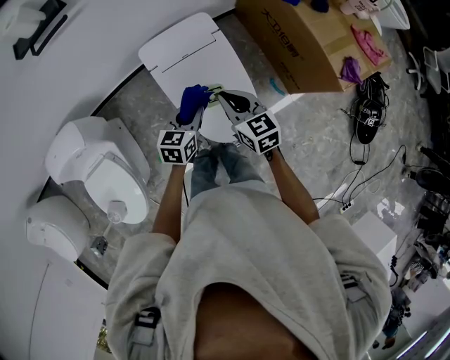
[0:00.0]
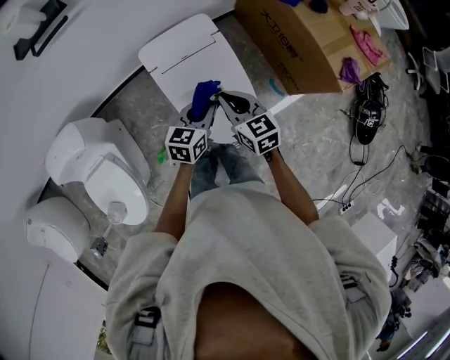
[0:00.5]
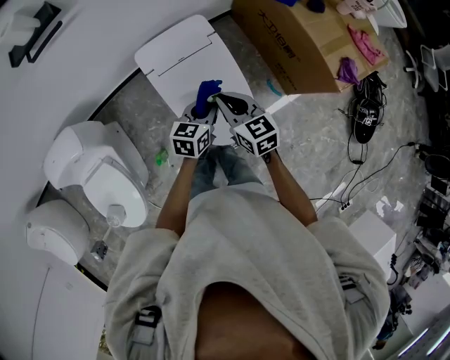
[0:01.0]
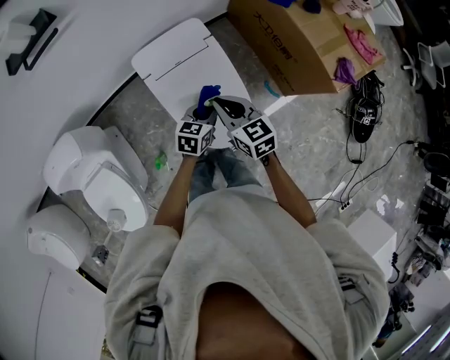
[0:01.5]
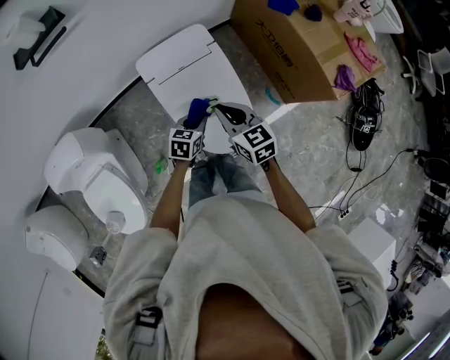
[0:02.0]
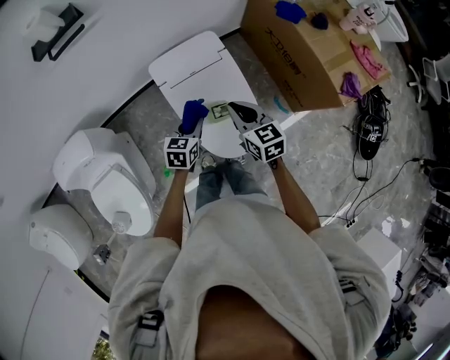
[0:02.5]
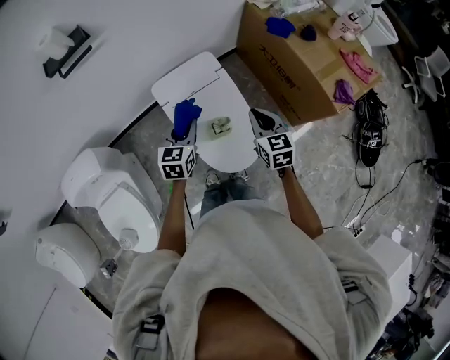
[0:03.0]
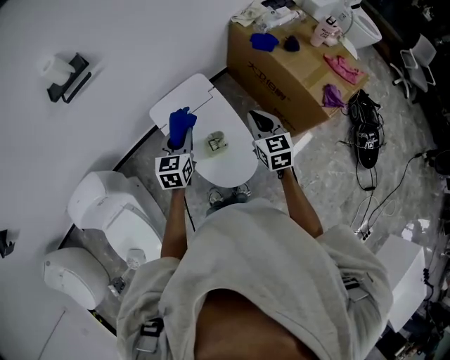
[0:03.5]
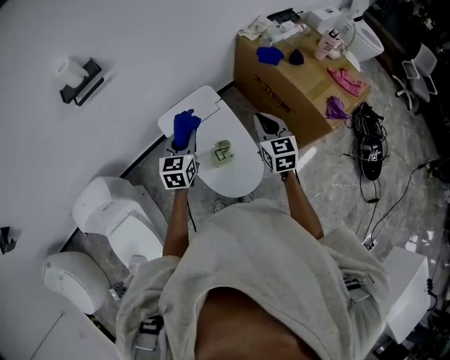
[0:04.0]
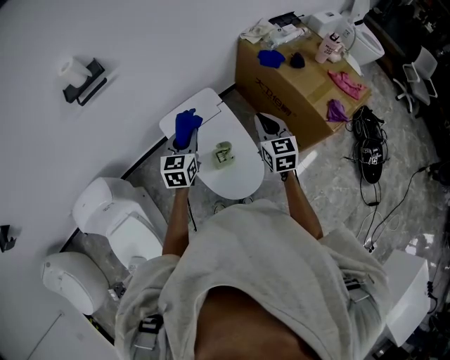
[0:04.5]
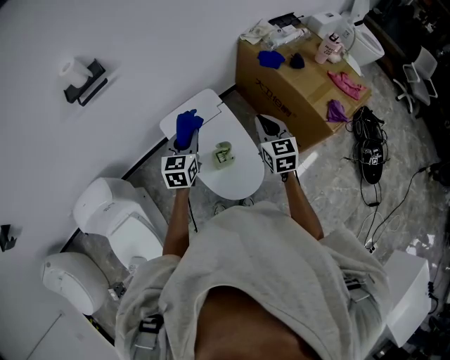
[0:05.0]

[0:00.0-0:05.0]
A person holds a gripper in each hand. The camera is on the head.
0:00.0 to 0:02.5: The left gripper reaches some 10 cm downward, then returns.
0:02.5 to 0:05.0: The left gripper is displaced upward and forward by roughly 20 cm, and swivels about 20 degrees; the right gripper goes roughly 15 cm to the right and upward, and changes its angle by about 30 degrees.

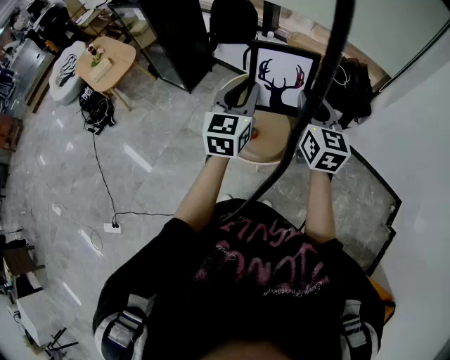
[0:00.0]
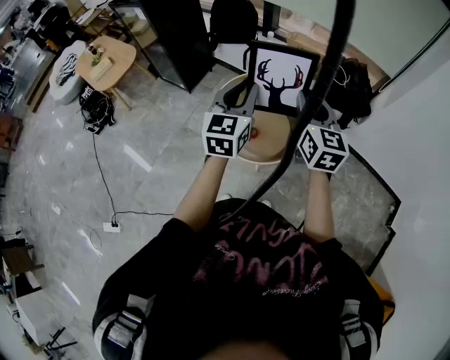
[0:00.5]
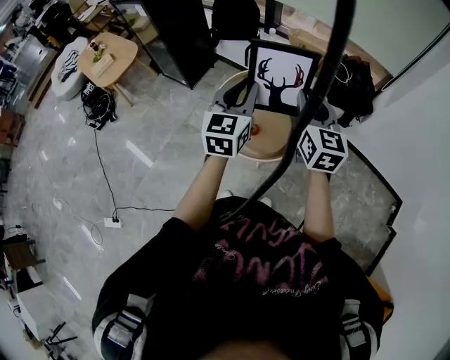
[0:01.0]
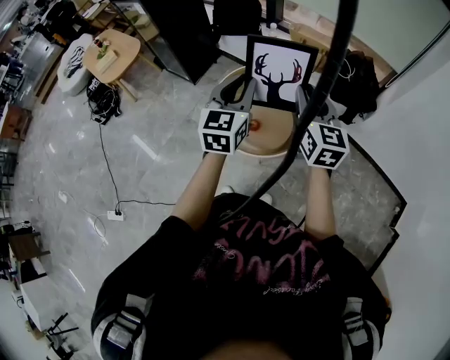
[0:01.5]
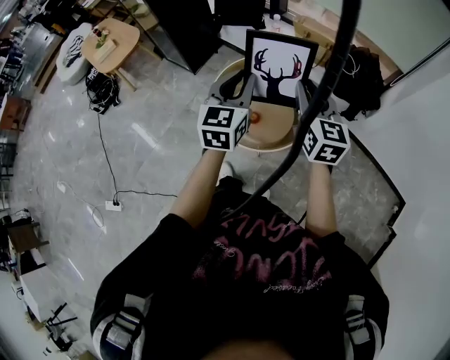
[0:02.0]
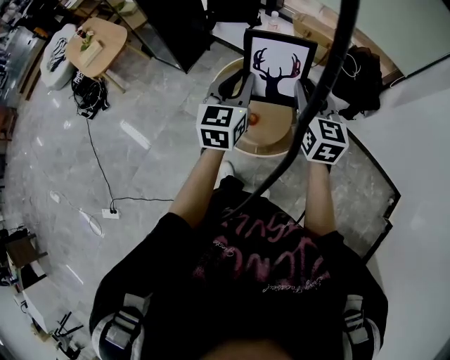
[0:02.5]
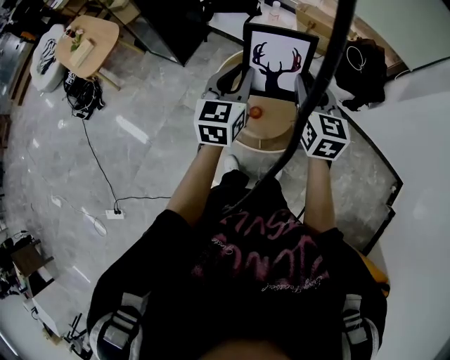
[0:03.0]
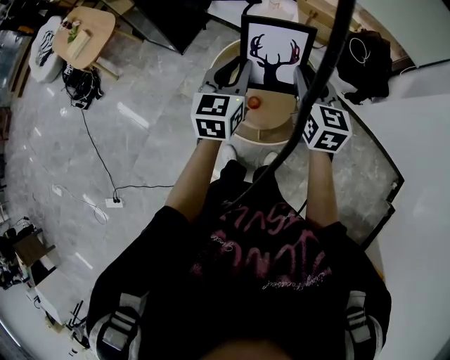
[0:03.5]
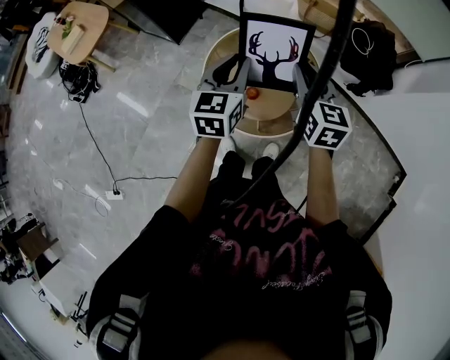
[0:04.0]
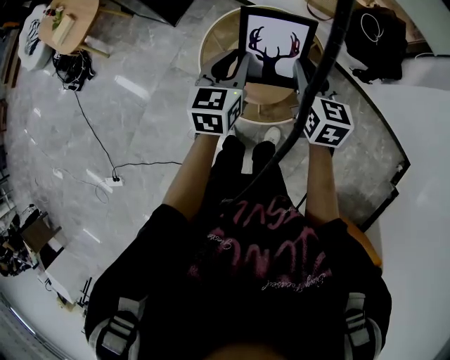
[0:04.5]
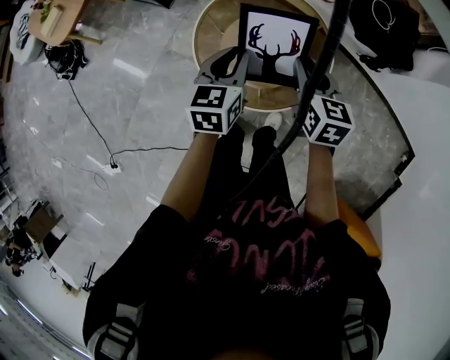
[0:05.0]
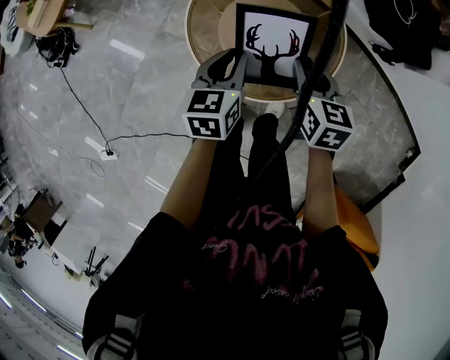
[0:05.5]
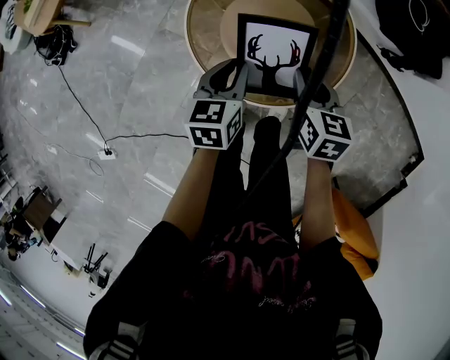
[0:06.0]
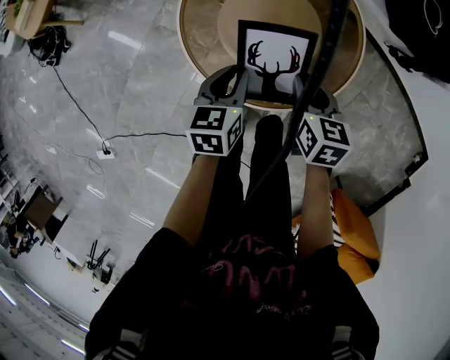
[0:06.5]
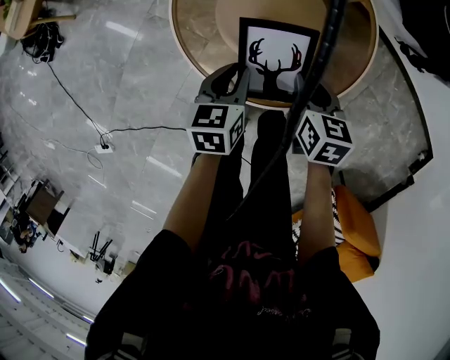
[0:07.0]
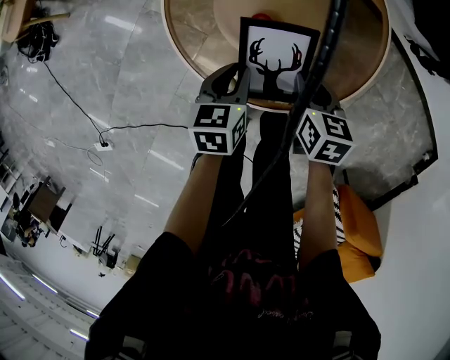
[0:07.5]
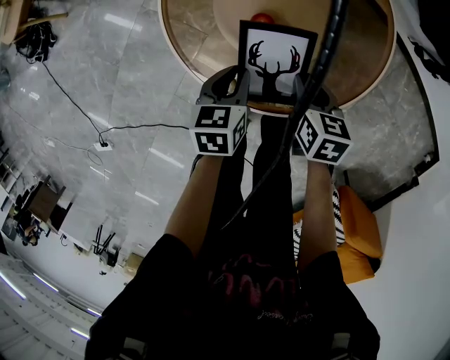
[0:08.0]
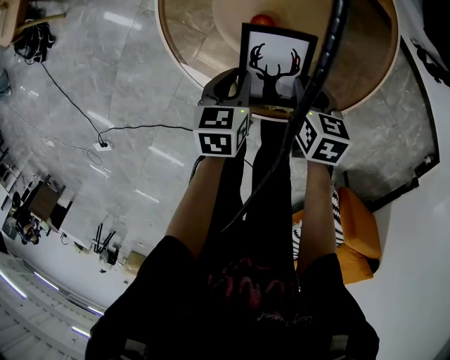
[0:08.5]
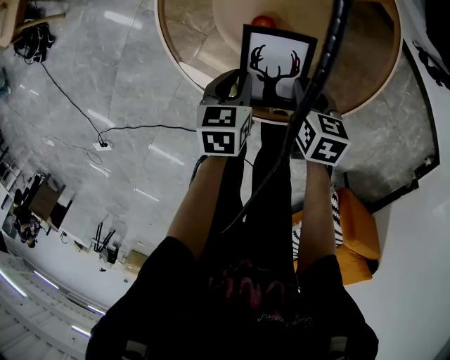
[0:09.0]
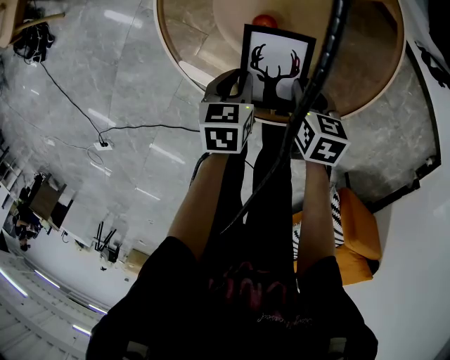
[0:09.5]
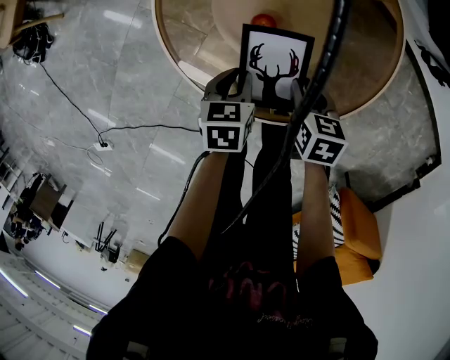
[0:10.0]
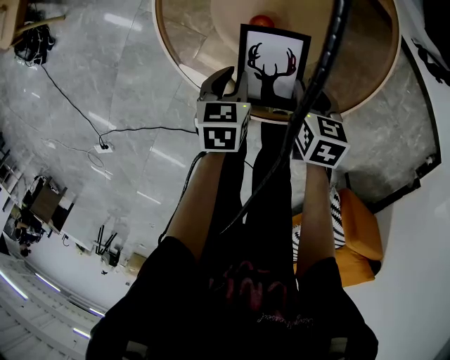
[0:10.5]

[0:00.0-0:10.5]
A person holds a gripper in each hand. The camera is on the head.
0:00.0 to 0:02.0: The grippers stay close to where they were, moving slightly.
0:02.0 to 0:04.0: The grippers both shift forward and downward by roughly 15 cm.
0:04.0 to 0:06.5: The grippers both shift downward by some 30 cm. The right gripper changes its angle by some 30 degrees. The left gripper swivels some 30 degrees.
0:06.5 to 0:08.5: Both grippers travel together downward, some 15 cm.
0:08.5 to 0:10.5: The grippers stay close to where they were, moving slightly.

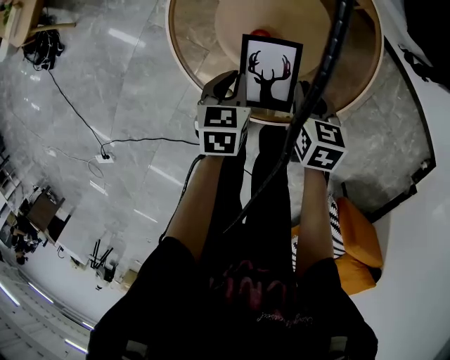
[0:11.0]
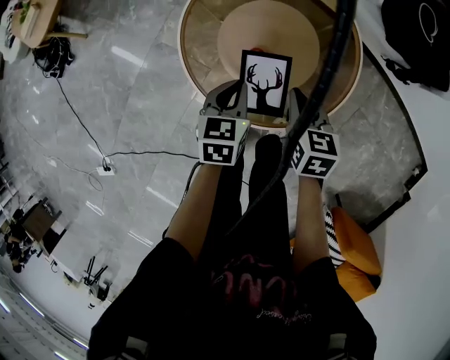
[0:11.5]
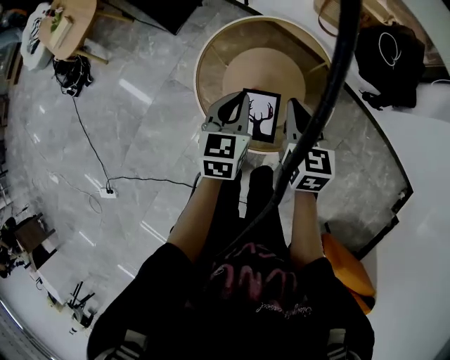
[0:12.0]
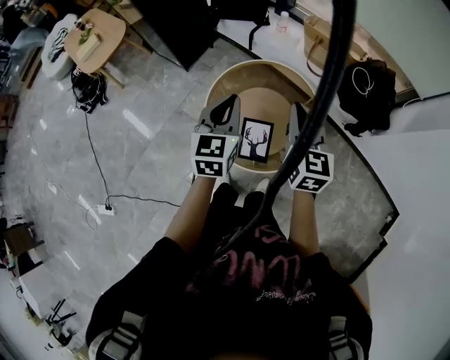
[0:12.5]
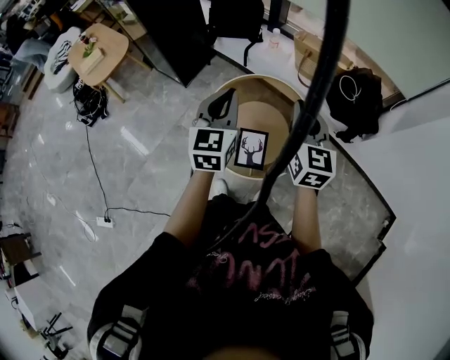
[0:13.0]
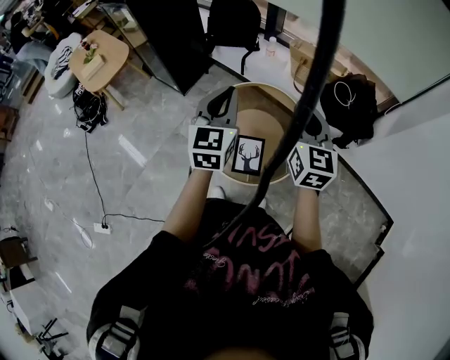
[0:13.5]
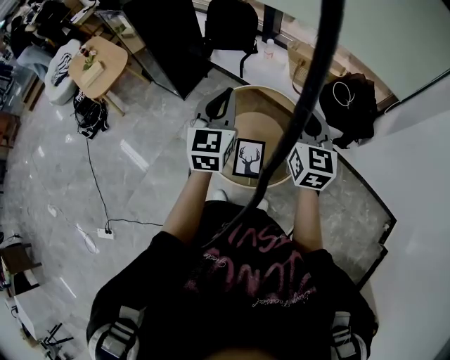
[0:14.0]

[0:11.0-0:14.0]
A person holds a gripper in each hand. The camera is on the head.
0:11.0 to 0:12.5: The grippers both shift upward by approximately 40 cm. The left gripper points its fingers about 40 degrees further upward; the right gripper points its fingers approximately 40 degrees further upward.
0:12.5 to 0:14.0: Both grippers travel together upward, roughly 10 cm.

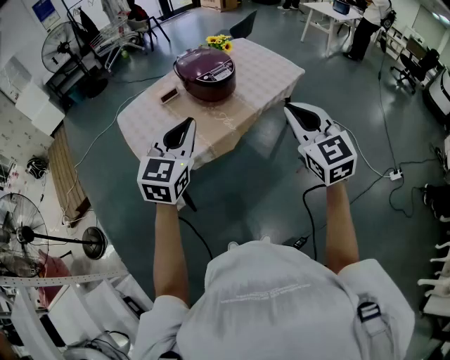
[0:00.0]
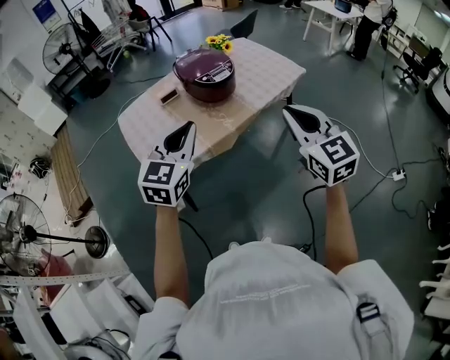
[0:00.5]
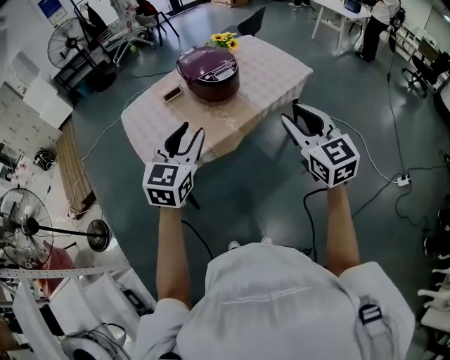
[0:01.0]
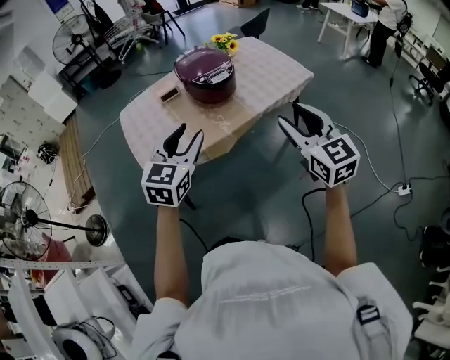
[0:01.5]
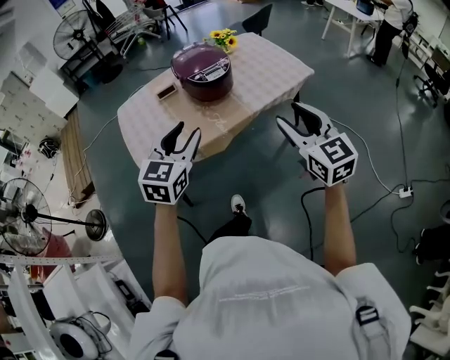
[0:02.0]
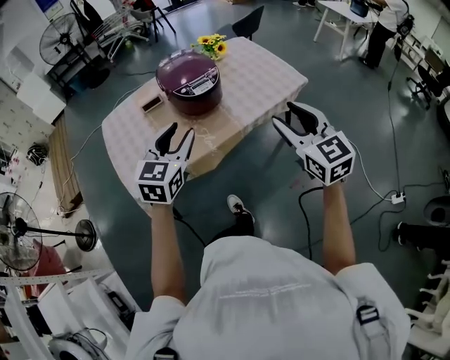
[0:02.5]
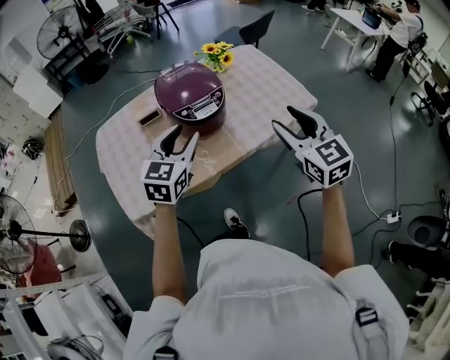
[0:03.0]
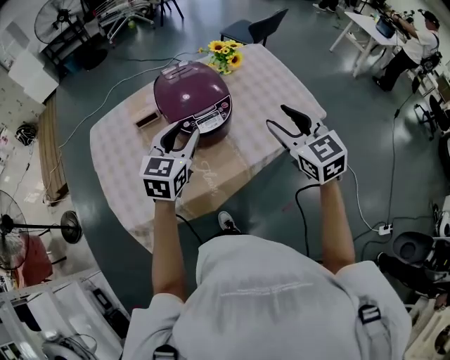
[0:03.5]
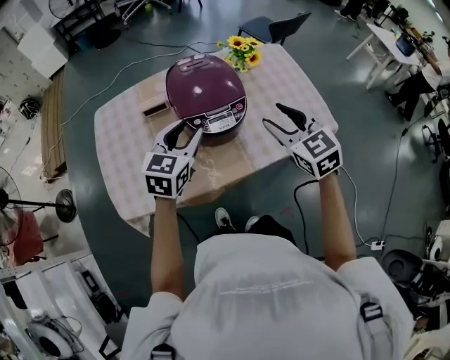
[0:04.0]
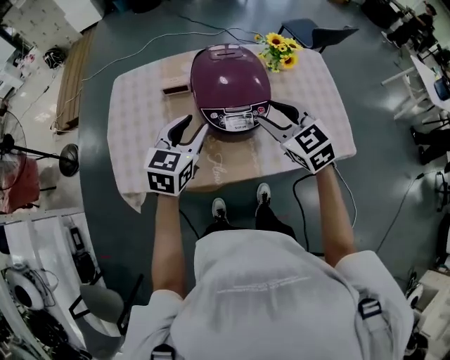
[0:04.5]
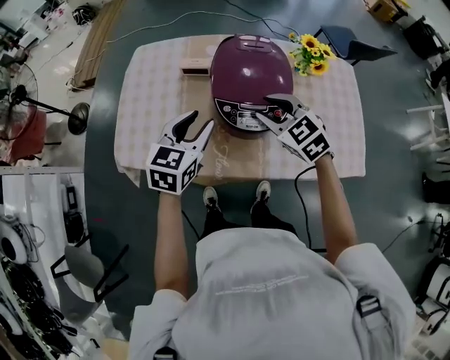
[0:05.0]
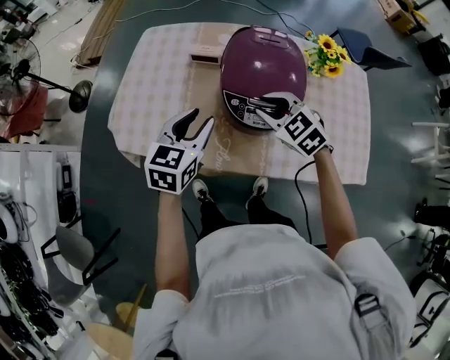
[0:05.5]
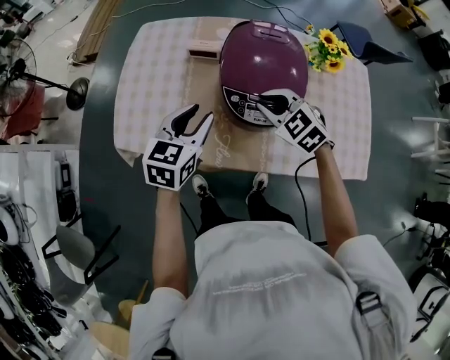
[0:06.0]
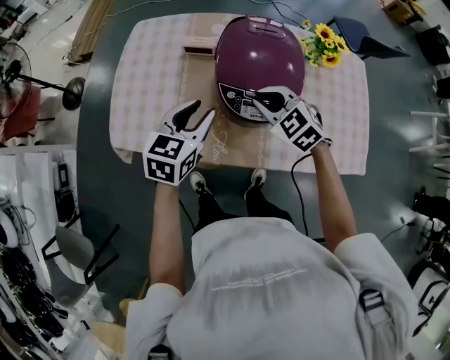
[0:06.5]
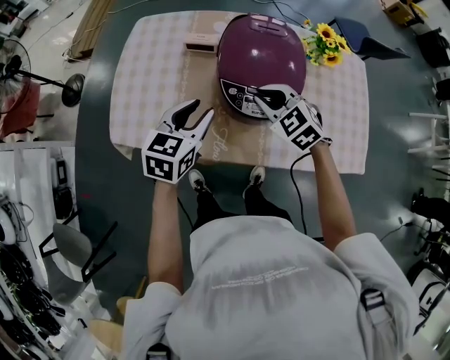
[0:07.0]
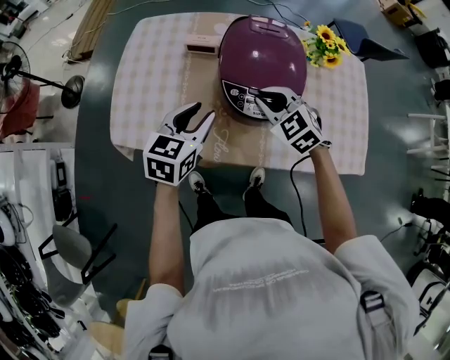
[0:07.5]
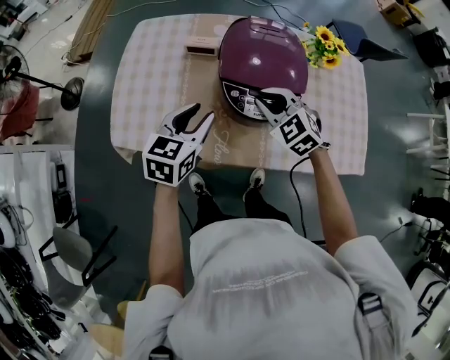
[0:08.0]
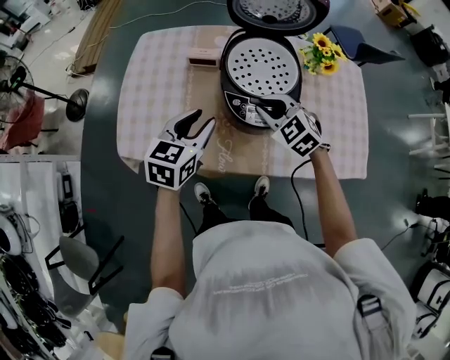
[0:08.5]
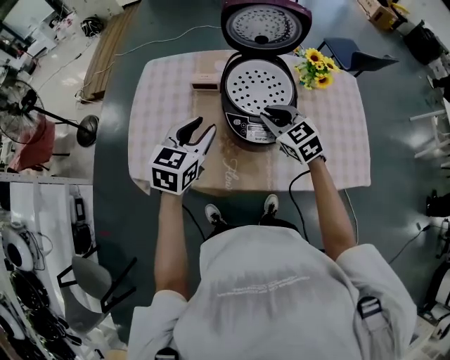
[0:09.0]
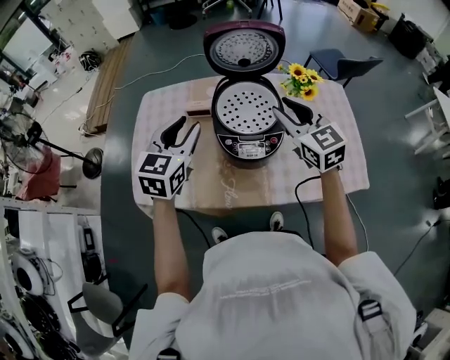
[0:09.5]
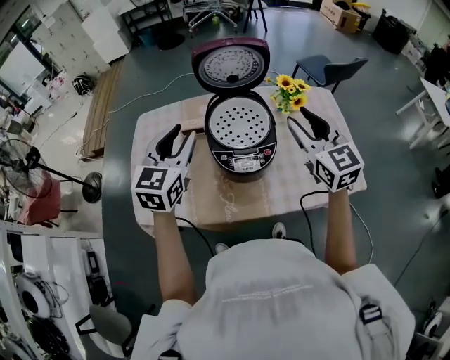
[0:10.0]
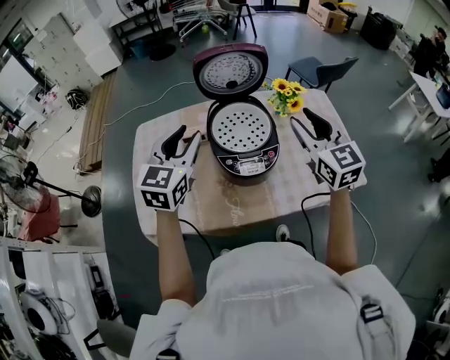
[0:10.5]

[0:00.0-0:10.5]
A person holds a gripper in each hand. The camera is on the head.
0:00.0 to 0:02.0: The left gripper is displaced to the right and downward by about 10 cm, and opens its fingers, while the right gripper moves to the right, forward and downward, approximately 15 cm, and opens its fingers.
0:02.0 to 0:04.0: The two grippers go approximately 35 cm forward. The right gripper changes its angle by roughly 30 degrees.
0:04.0 to 0:06.5: The left gripper moves downward, roughly 5 cm, and rotates some 30 degrees, while the right gripper moves approximately 20 cm, rotates some 40 degrees, and closes up.
0:06.5 to 0:08.5: The grippers make only small movements.
0:08.5 to 0:10.5: The right gripper is displaced upward and to the right by about 25 cm, tips its fingers upward by some 30 degrees, and opens its fingers; the left gripper shifts approximately 20 cm upward and forward, and swivels roughly 20 degrees.
